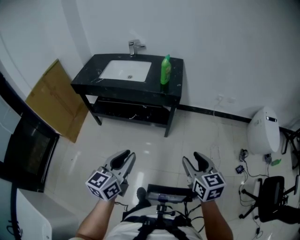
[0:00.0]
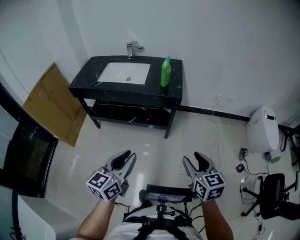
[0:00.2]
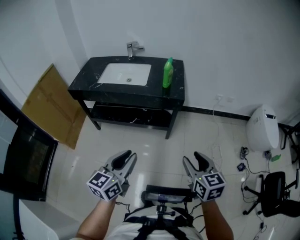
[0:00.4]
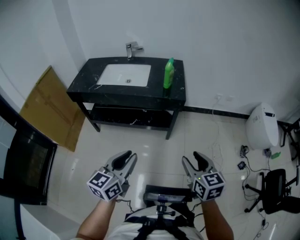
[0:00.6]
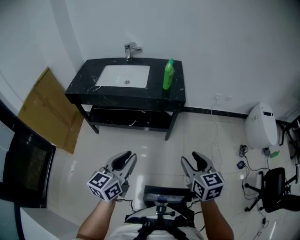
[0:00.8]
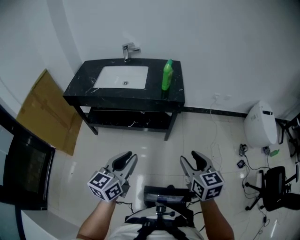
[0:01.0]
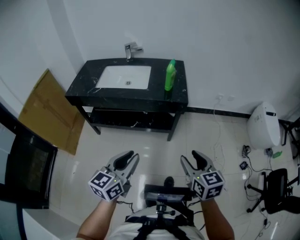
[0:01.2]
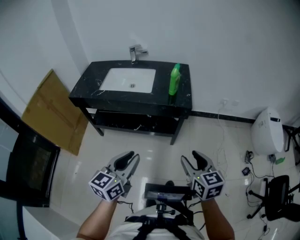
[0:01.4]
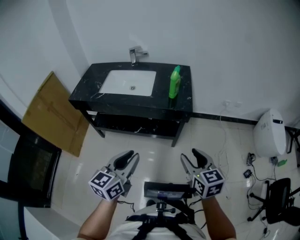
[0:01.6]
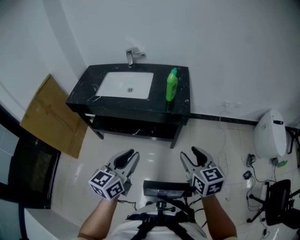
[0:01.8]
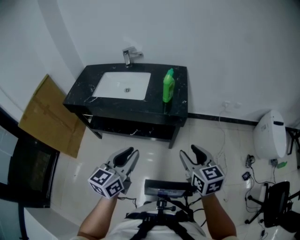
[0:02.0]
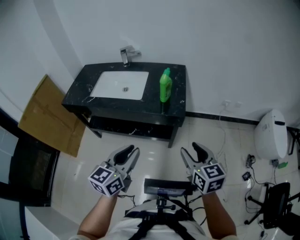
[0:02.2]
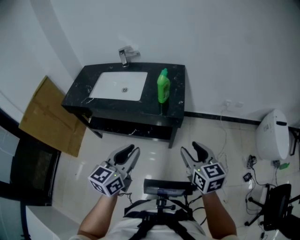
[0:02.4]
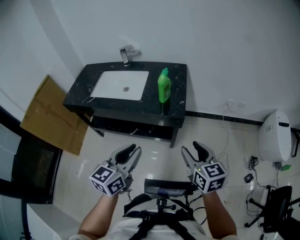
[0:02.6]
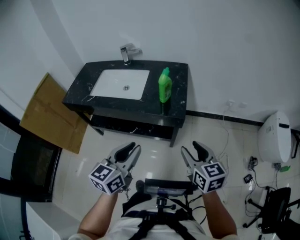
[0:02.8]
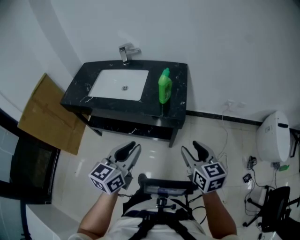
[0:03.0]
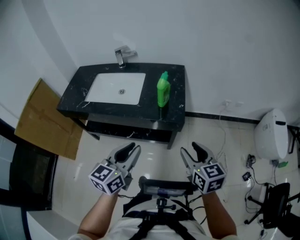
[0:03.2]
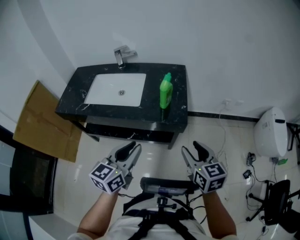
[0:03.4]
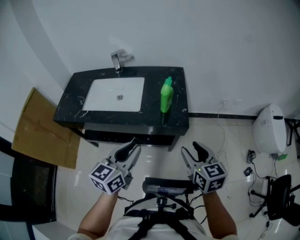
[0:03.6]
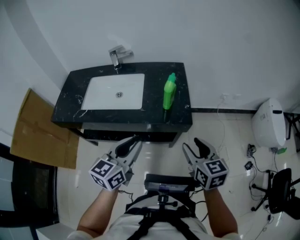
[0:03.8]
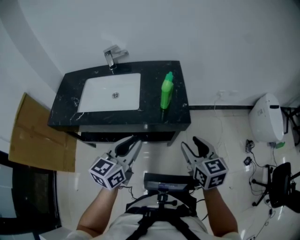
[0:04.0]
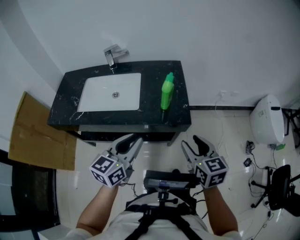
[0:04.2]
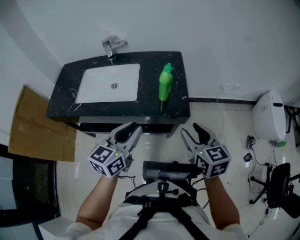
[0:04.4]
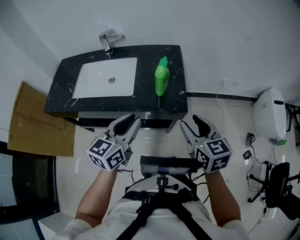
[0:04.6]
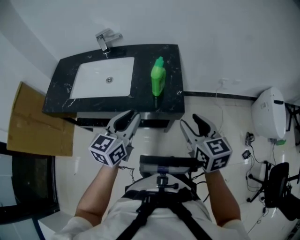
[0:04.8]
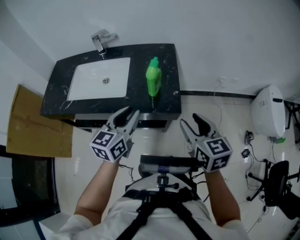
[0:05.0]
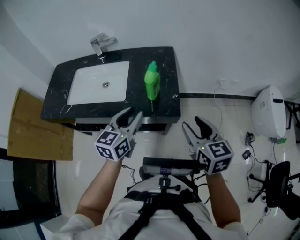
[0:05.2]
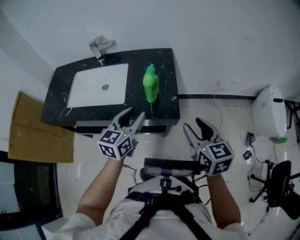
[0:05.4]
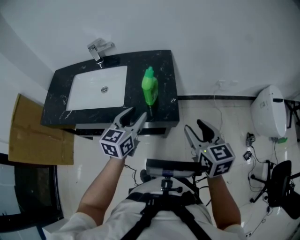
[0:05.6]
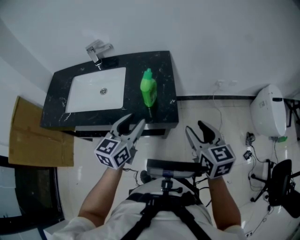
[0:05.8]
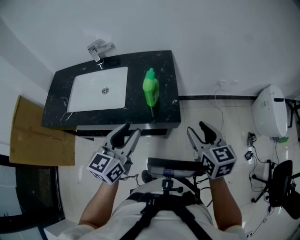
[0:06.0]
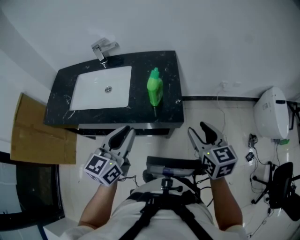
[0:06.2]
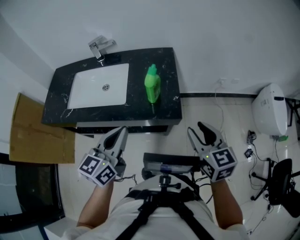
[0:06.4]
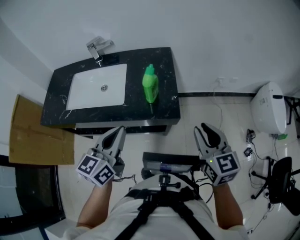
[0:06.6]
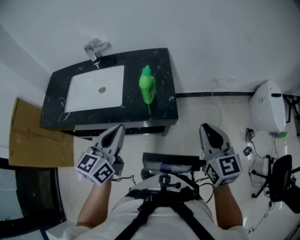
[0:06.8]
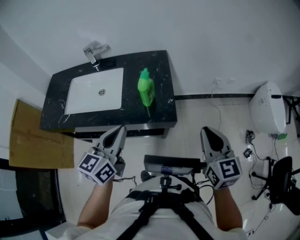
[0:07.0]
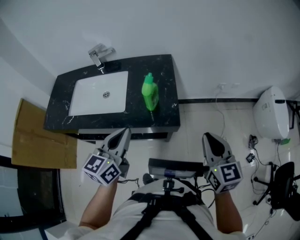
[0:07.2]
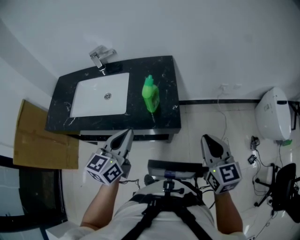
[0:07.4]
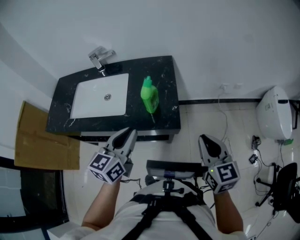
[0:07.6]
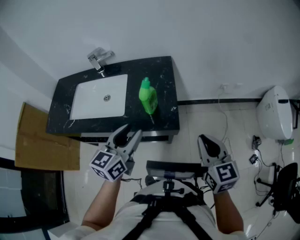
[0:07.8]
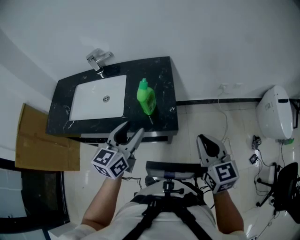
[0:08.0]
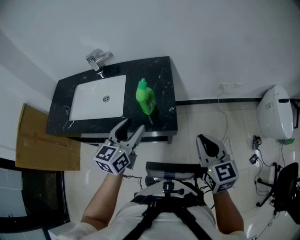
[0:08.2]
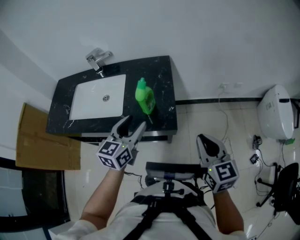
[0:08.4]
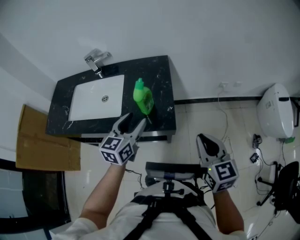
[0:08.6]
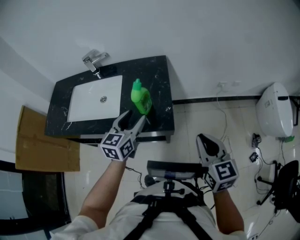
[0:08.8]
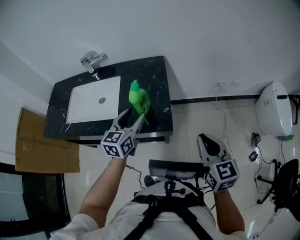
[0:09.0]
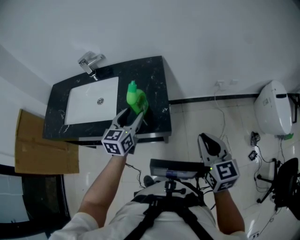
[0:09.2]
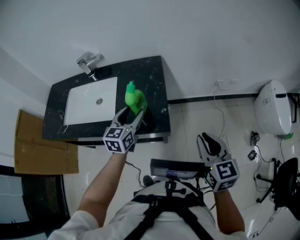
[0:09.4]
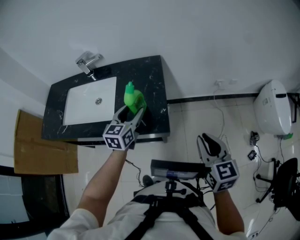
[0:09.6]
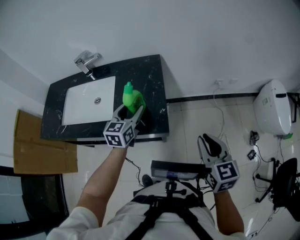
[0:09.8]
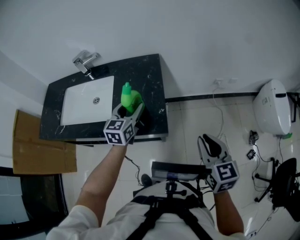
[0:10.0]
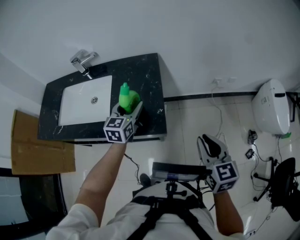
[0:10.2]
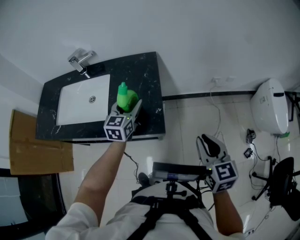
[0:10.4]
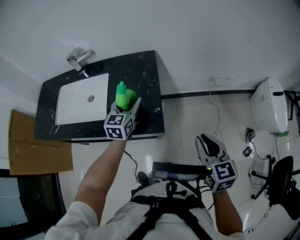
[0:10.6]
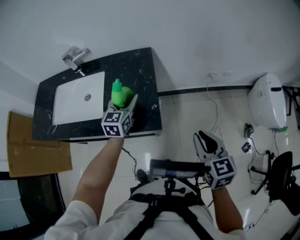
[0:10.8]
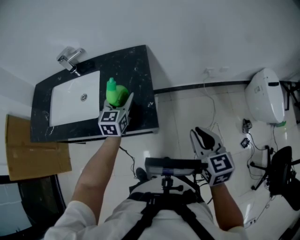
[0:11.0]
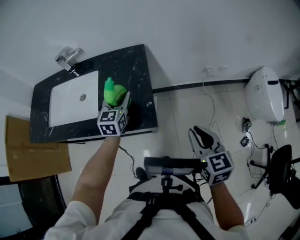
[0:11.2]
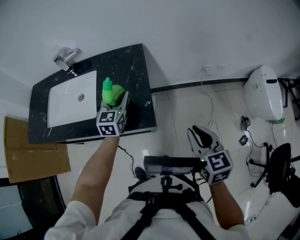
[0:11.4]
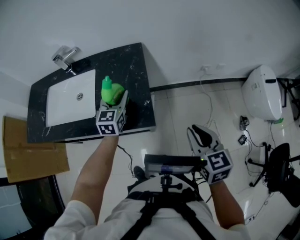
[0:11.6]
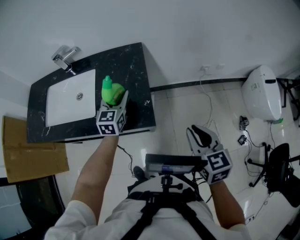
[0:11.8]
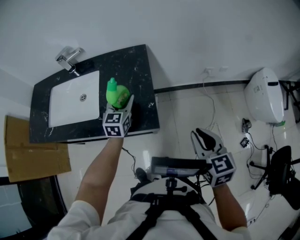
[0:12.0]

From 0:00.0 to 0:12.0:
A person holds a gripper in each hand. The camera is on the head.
From 0:00.0 to 0:01.6: Both grippers travel together forward and to the left, about 15 cm.
From 0:01.6 to 0:03.0: The grippers both shift forward and to the right by approximately 15 cm.
From 0:03.0 to 0:04.4: Both grippers travel together forward and to the left, some 10 cm.
From 0:04.4 to 0:06.0: The left gripper opens up, while the right gripper is displaced to the right by roughly 10 cm.
From 0:06.0 to 0:07.6: The left gripper closes. Meanwhile the right gripper closes.
From 0:07.6 to 0:09.0: The left gripper goes roughly 10 cm forward and downward, and opens up.
From 0:09.0 to 0:10.4: The left gripper shifts about 10 cm forward.
From 0:10.4 to 0:12.0: The grippers move only a little.

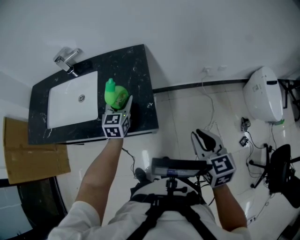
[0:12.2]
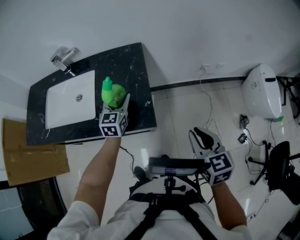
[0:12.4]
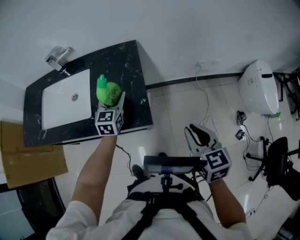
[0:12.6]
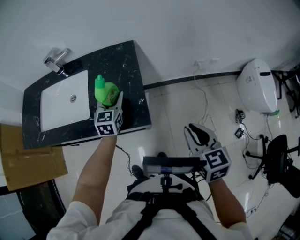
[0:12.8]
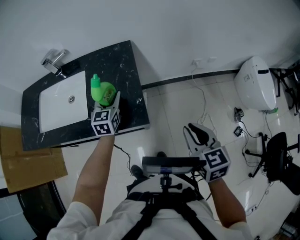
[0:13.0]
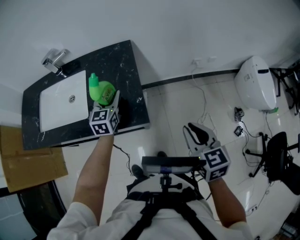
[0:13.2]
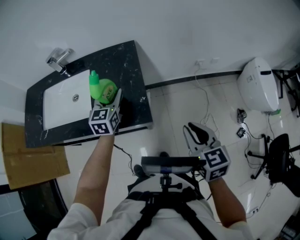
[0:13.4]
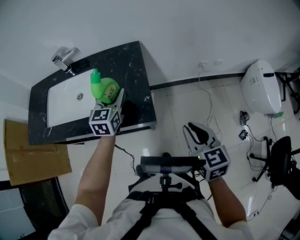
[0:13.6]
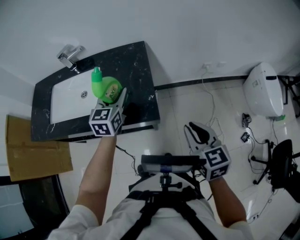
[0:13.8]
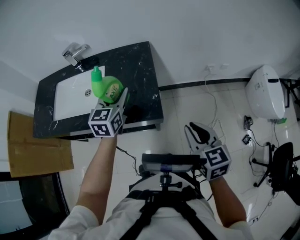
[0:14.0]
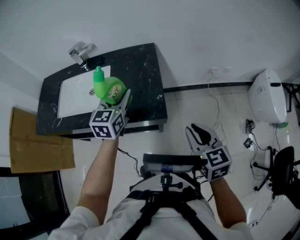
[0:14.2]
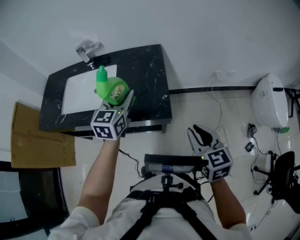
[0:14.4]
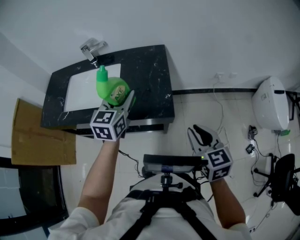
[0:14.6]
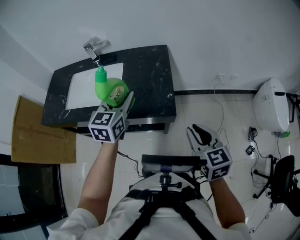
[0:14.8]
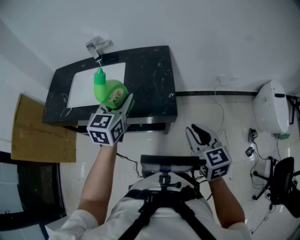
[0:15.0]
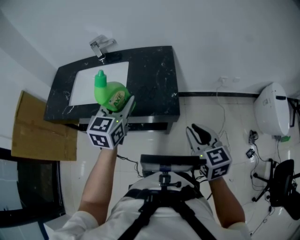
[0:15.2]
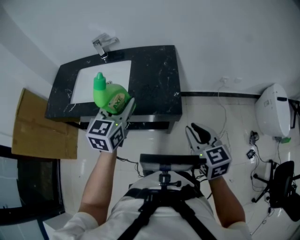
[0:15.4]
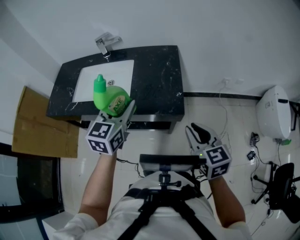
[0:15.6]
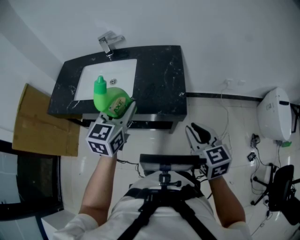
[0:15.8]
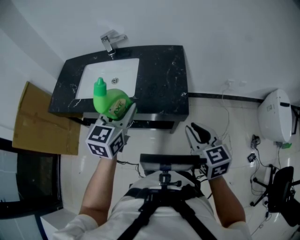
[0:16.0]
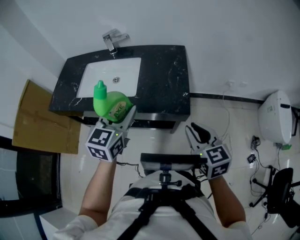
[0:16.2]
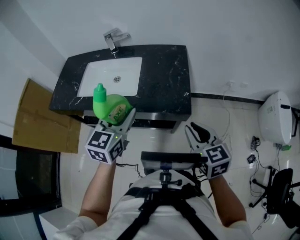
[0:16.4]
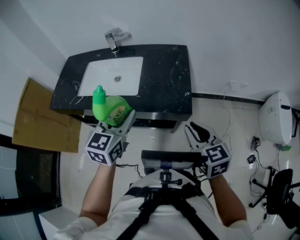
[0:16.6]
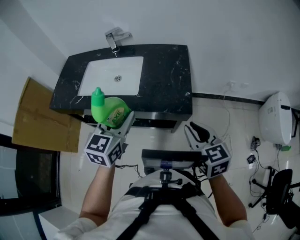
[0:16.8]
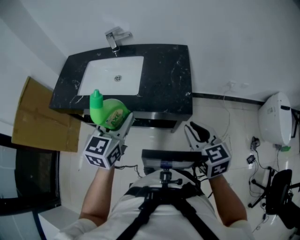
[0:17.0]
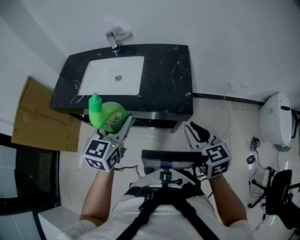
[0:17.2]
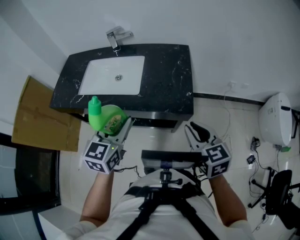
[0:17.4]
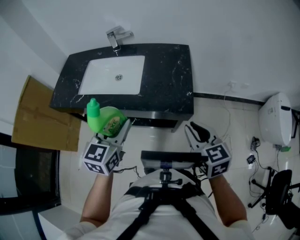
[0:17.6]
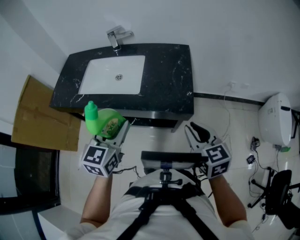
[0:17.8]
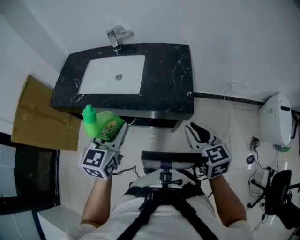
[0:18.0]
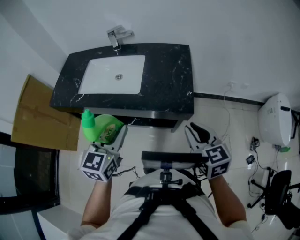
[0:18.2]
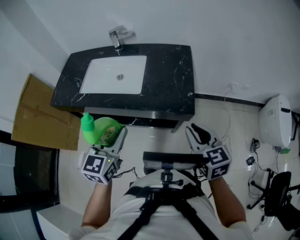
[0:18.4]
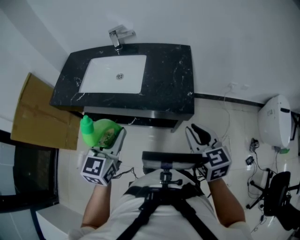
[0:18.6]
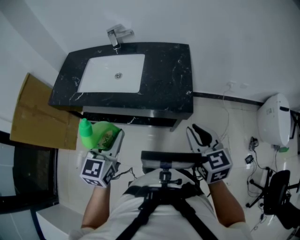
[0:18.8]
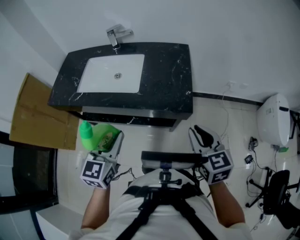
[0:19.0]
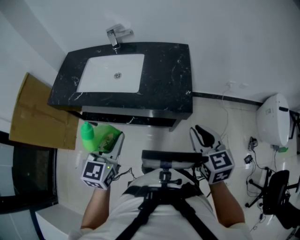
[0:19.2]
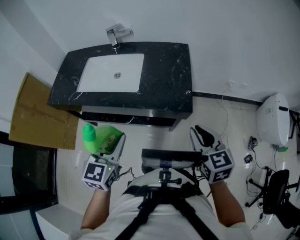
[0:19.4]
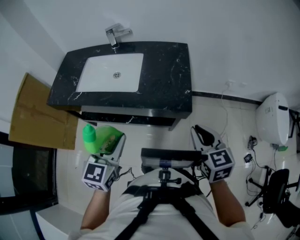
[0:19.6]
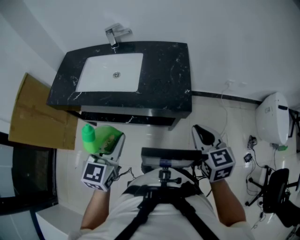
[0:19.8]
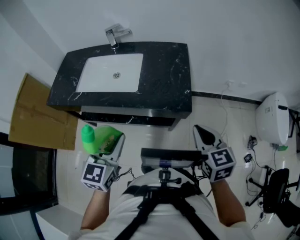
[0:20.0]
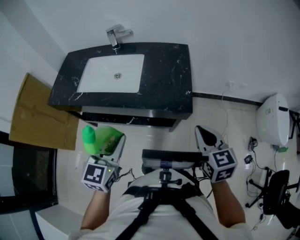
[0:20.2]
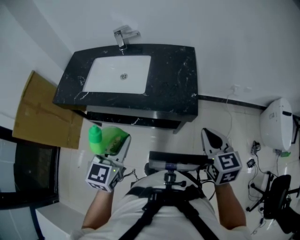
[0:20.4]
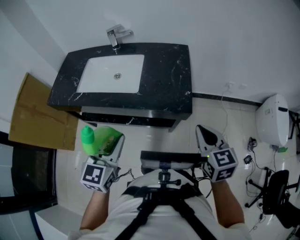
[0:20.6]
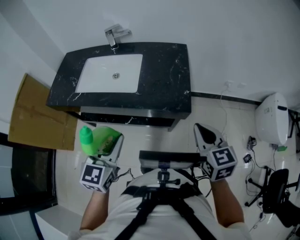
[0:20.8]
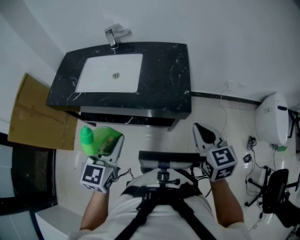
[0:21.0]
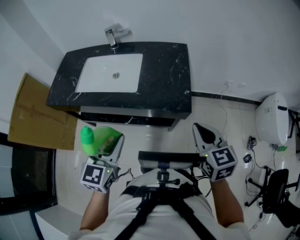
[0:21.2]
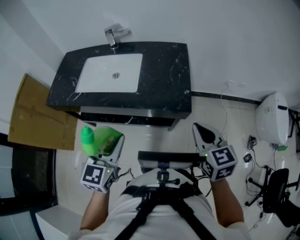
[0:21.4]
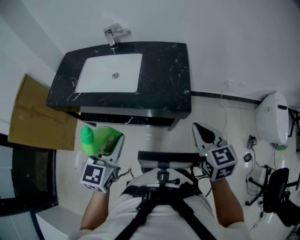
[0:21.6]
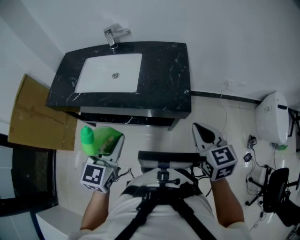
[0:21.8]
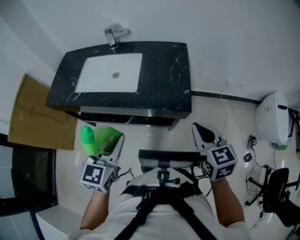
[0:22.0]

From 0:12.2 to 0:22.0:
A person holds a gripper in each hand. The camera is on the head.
From 0:12.2 to 0:13.6: The left gripper travels upward by approximately 5 cm.
From 0:13.6 to 0:15.0: The right gripper is displaced to the left by roughly 5 cm. Meanwhile the left gripper moves backward, upward and to the left, about 15 cm.
From 0:15.0 to 0:16.4: The right gripper heads to the left, covering some 5 cm. The left gripper moves backward and to the left, about 10 cm.
From 0:16.4 to 0:17.8: The left gripper ends up about 5 cm from where it was.
From 0:17.8 to 0:19.2: The left gripper shifts by some 5 cm.
From 0:19.2 to 0:20.6: The grippers make only small movements.
From 0:20.6 to 0:22.0: Neither gripper changes place.

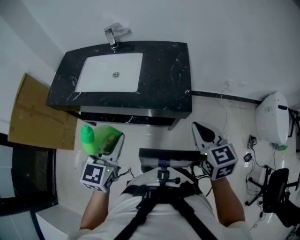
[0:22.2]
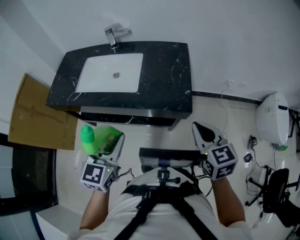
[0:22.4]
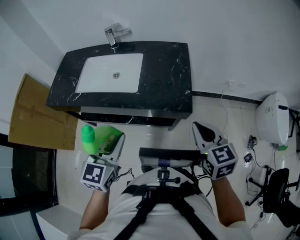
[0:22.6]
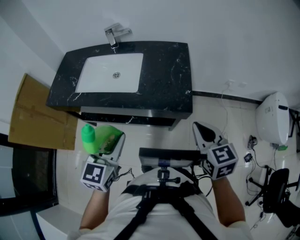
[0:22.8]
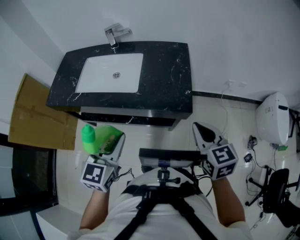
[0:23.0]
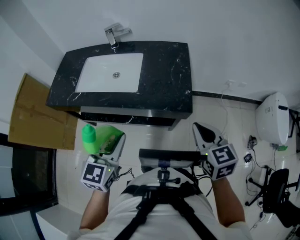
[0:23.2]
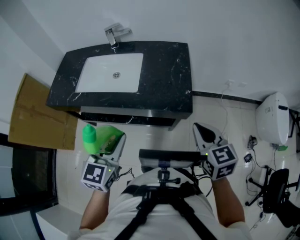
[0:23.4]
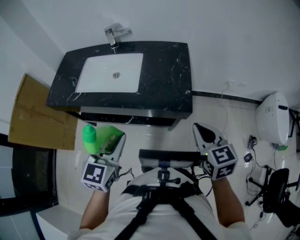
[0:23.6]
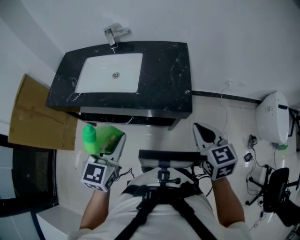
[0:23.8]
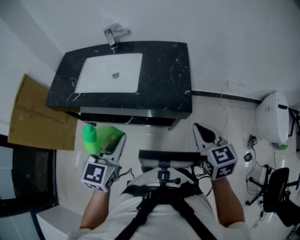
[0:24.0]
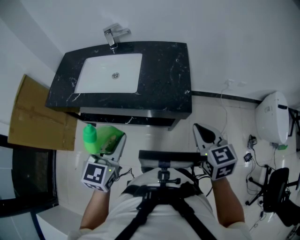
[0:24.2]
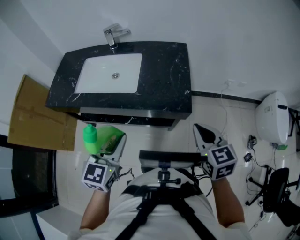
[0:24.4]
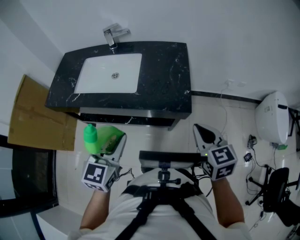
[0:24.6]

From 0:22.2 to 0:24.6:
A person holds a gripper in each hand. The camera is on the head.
From 0:22.2 to 0:24.6: Both grippers stay about where they are.
